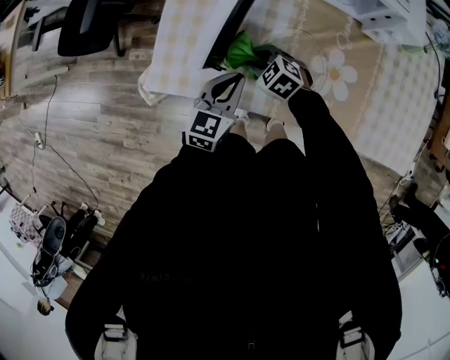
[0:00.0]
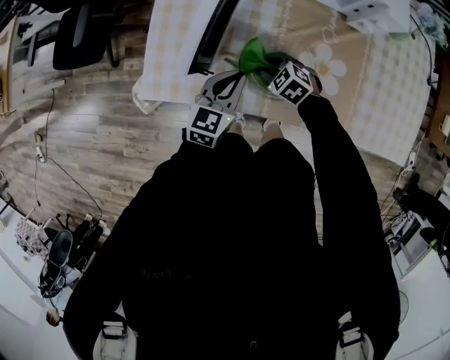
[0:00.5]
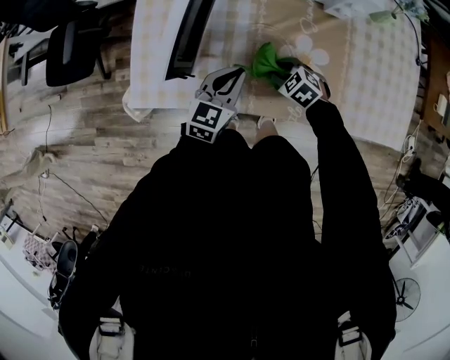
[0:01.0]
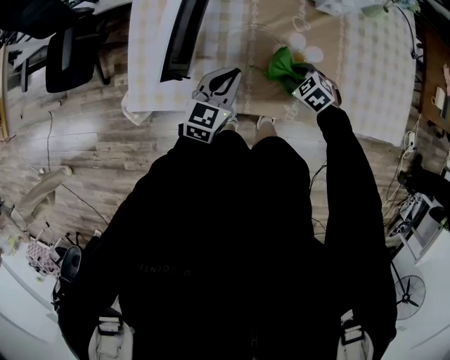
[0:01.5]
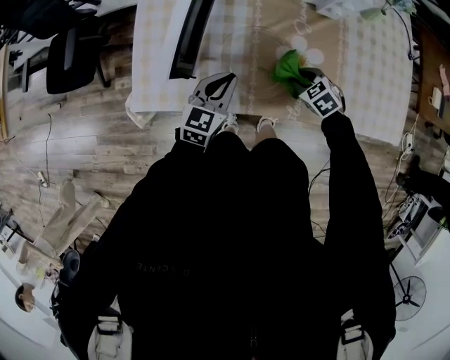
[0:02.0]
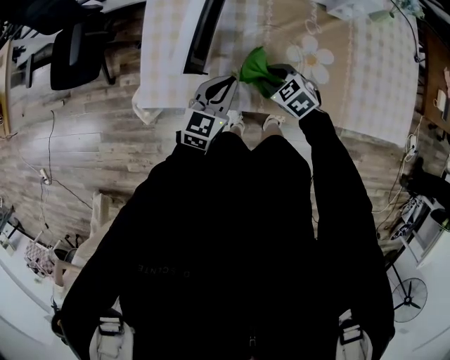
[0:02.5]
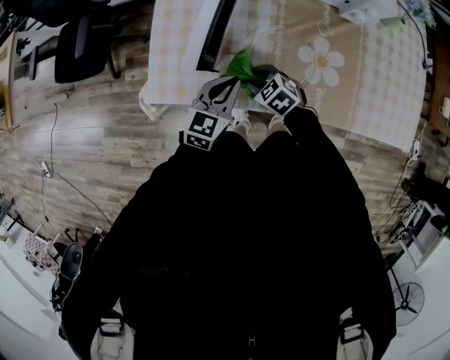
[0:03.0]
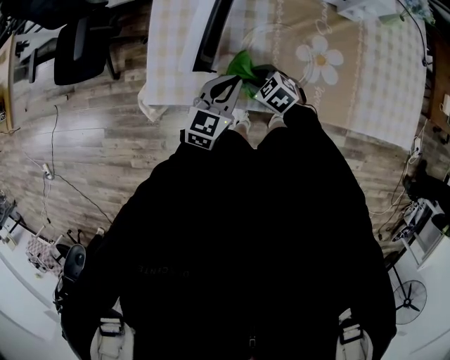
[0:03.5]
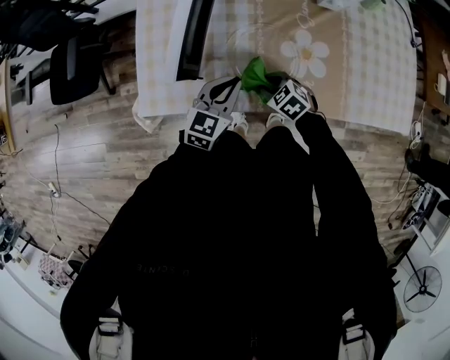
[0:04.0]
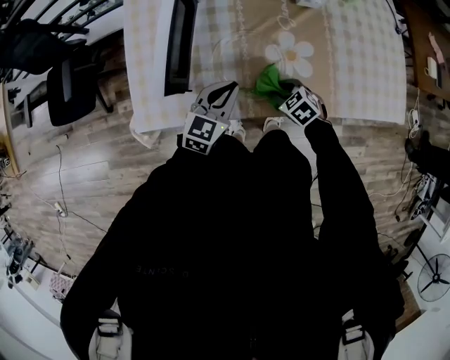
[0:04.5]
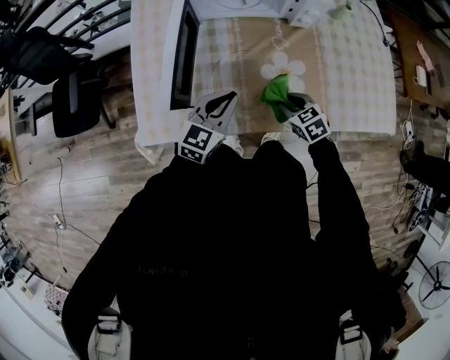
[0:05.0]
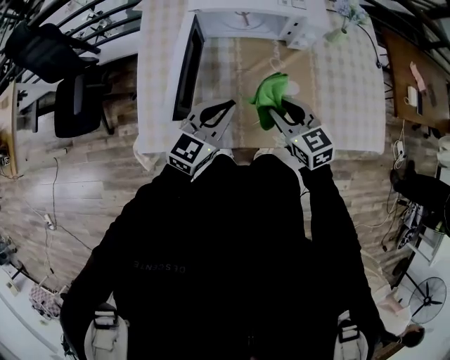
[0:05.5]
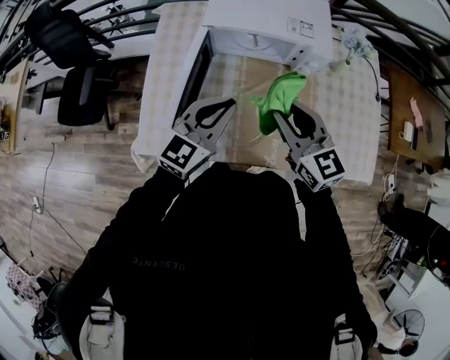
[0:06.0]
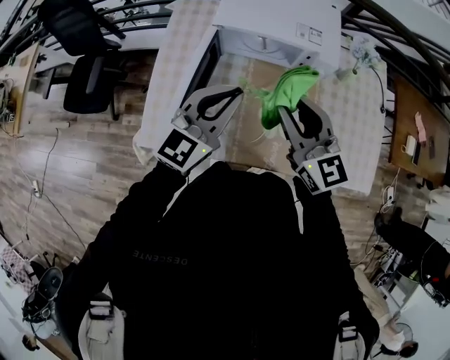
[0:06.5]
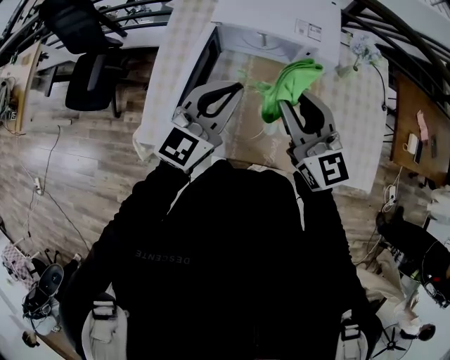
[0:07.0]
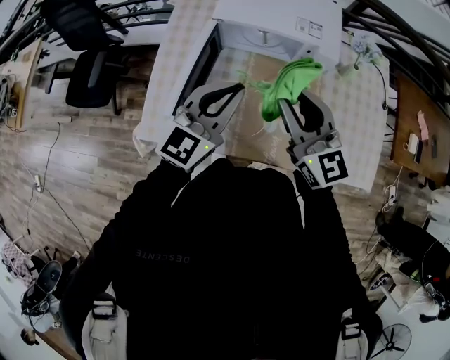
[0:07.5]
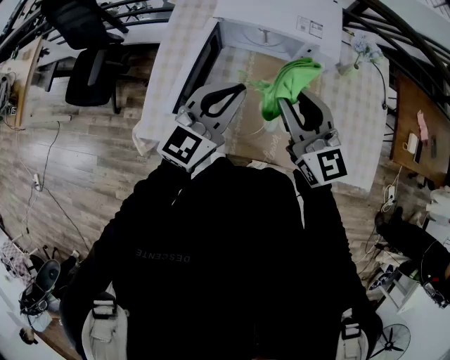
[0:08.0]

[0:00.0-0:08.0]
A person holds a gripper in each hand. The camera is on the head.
0:00.0 to 0:02.0: The left gripper is displaced to the right by roughly 5 cm; the right gripper heads to the right, covering about 25 cm, and changes its angle by some 20 degrees.
0:02.0 to 0:04.0: The right gripper goes some 15 cm to the left.
0:04.0 to 0:06.0: The left gripper shifts approximately 20 cm upward. The right gripper heads upward, covering some 35 cm, and angles its fingers upward, by roughly 50 degrees.
0:06.0 to 0:08.0: The two grippers go roughly 5 cm upward.

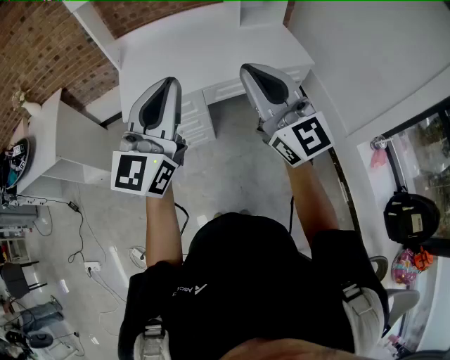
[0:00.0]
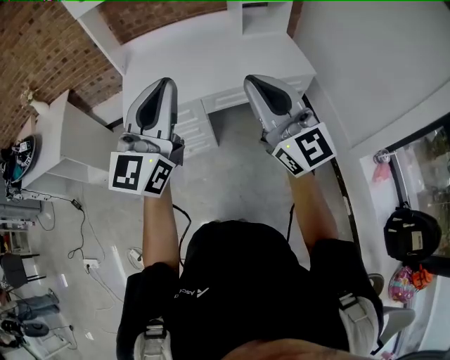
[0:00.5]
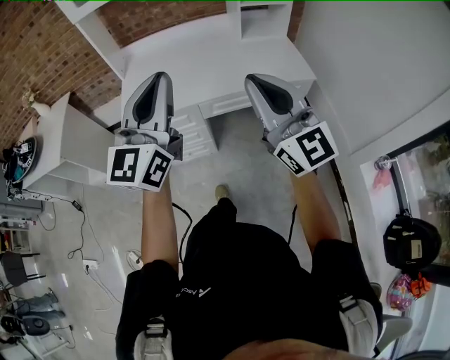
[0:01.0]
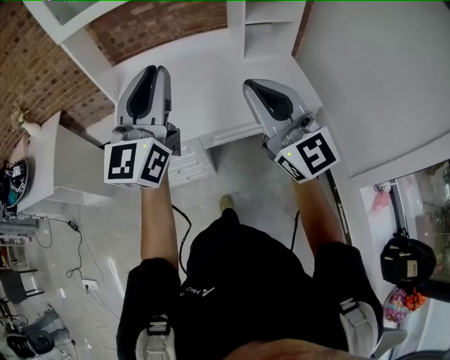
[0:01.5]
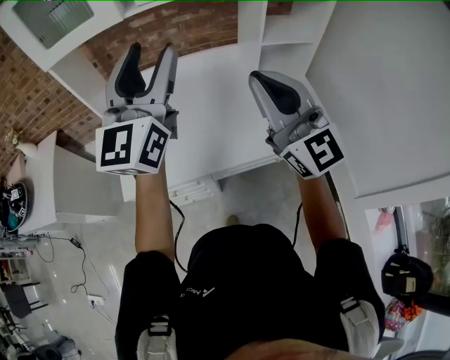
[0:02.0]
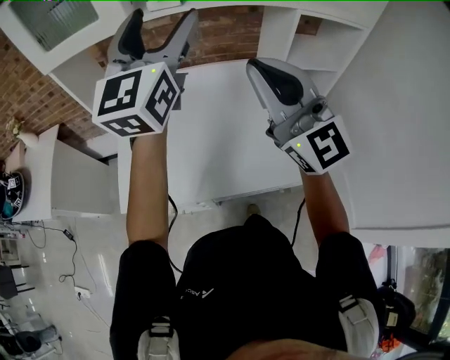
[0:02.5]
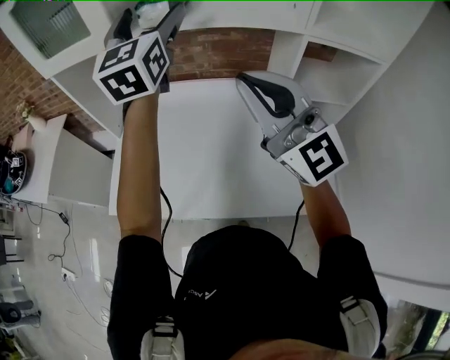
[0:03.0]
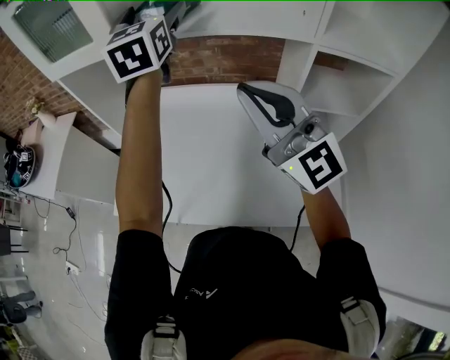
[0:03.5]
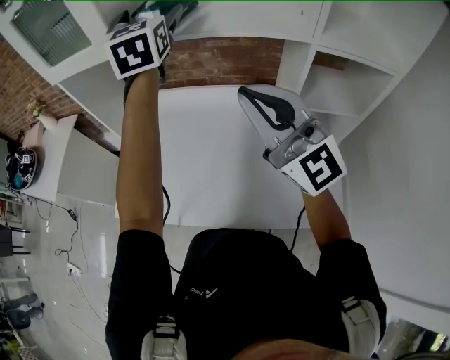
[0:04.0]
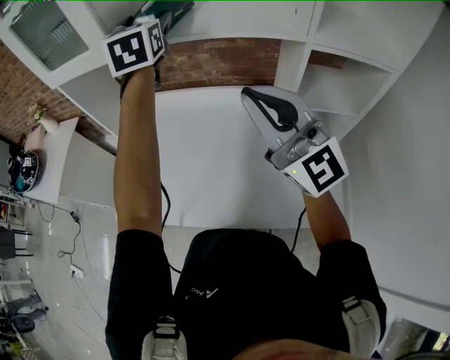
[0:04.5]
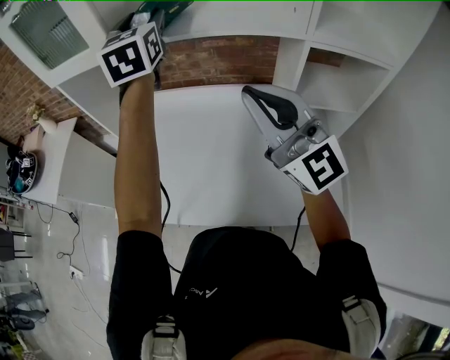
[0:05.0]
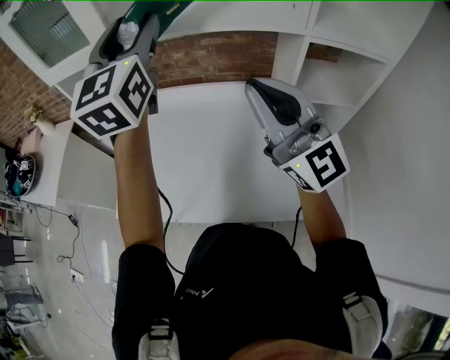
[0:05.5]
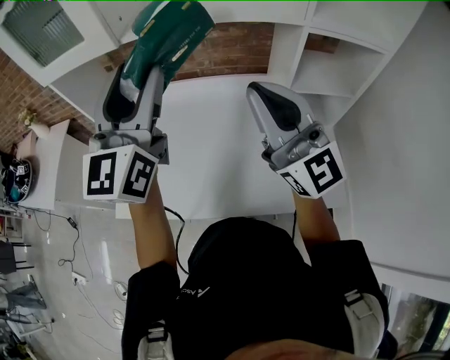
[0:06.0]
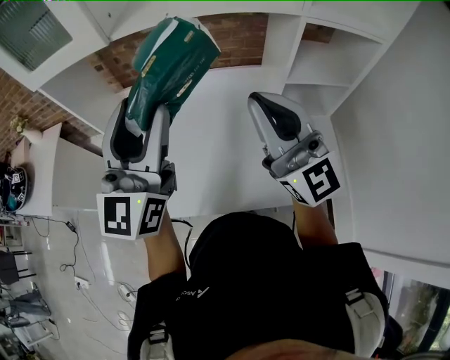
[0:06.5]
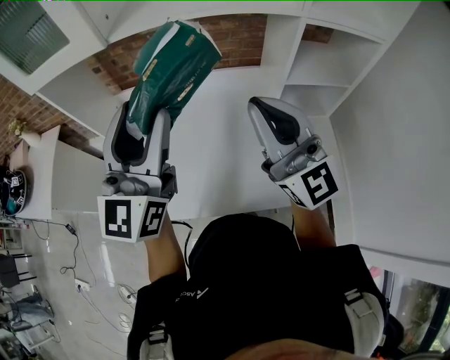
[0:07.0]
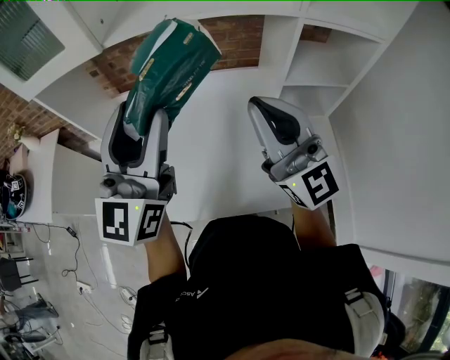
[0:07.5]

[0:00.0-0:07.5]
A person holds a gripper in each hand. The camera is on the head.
0:00.0 to 0:02.0: The two grippers go roughly 40 cm forward. The left gripper opens.
0:02.0 to 0:04.0: The right gripper ends up roughly 20 cm from where it was, and turns by some 20 degrees. The left gripper changes place by some 35 cm, changes its angle by approximately 40 degrees, and opens.
0:04.0 to 0:05.5: The left gripper moves backward, some 10 cm, and closes its fingers.
0:05.5 to 0:07.5: The right gripper is displaced downward by approximately 5 cm; the left gripper shifts some 15 cm backward and downward.

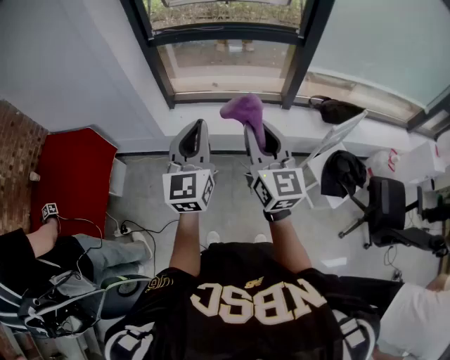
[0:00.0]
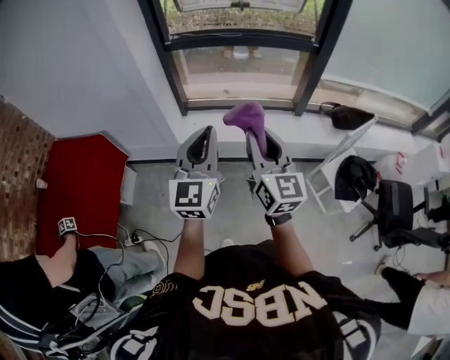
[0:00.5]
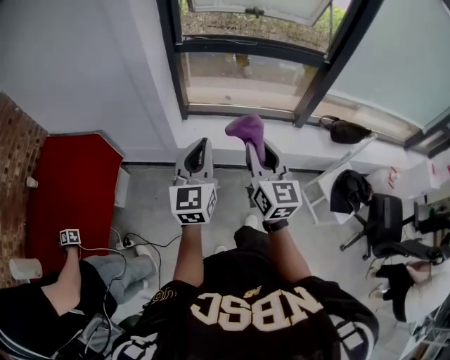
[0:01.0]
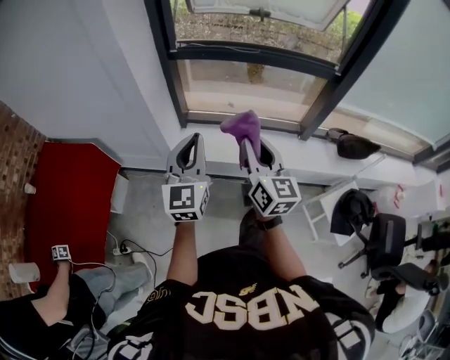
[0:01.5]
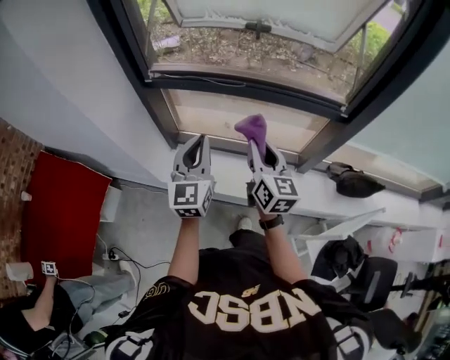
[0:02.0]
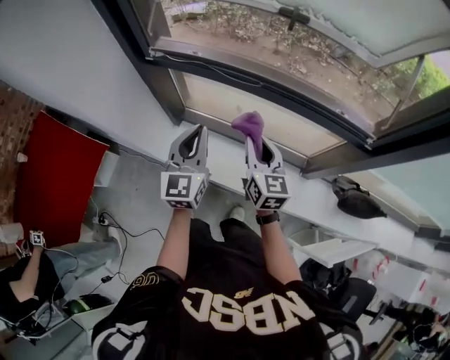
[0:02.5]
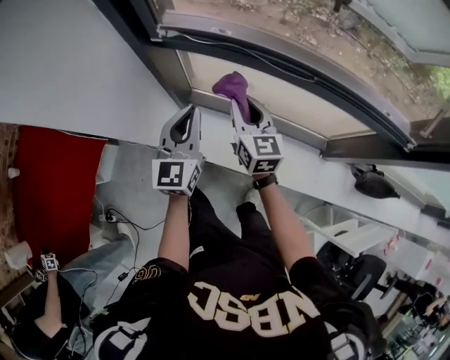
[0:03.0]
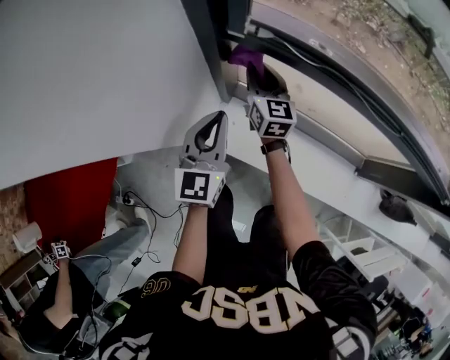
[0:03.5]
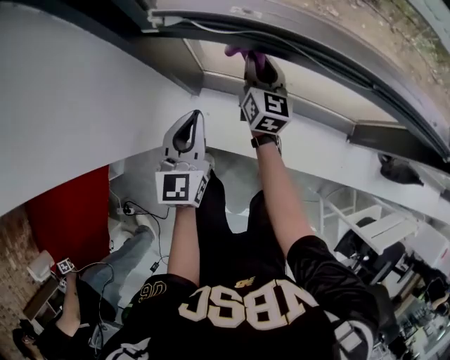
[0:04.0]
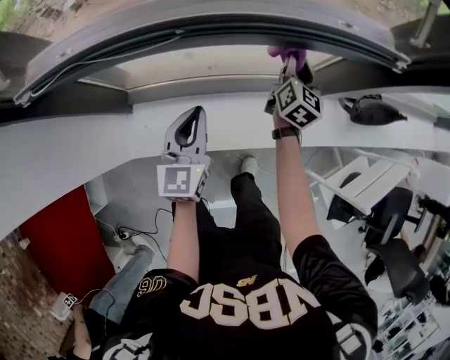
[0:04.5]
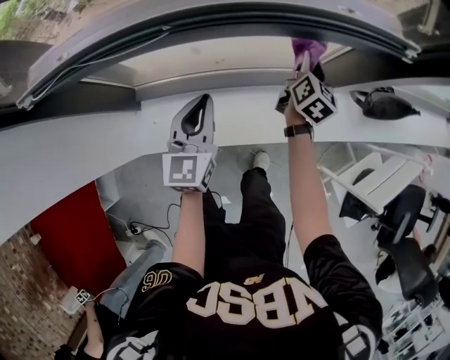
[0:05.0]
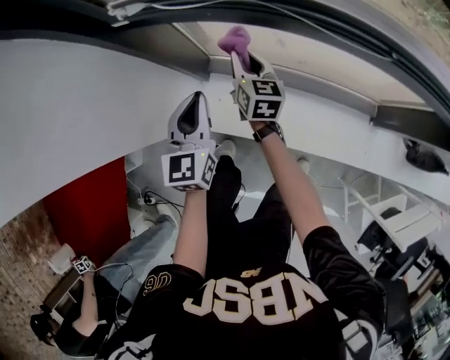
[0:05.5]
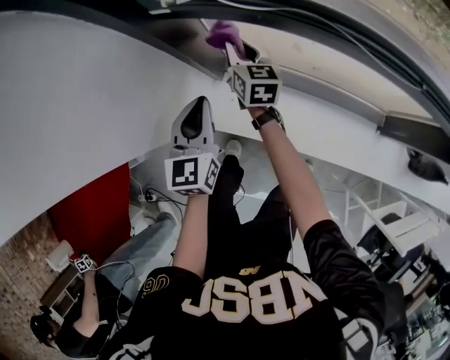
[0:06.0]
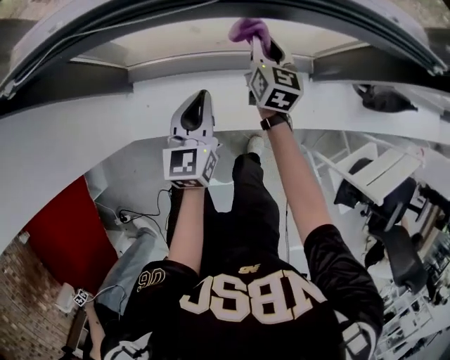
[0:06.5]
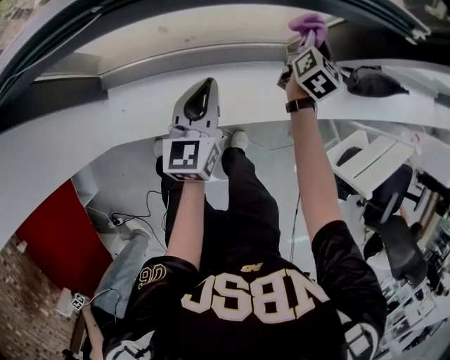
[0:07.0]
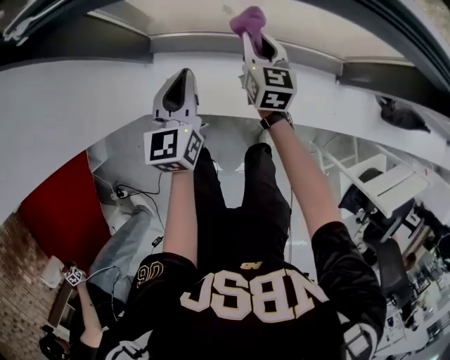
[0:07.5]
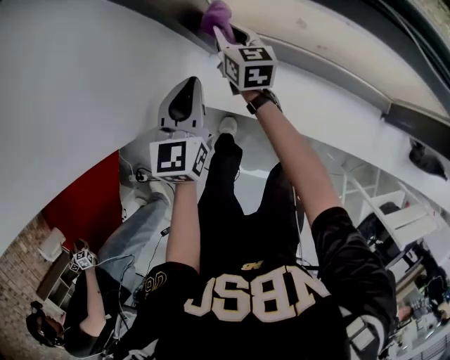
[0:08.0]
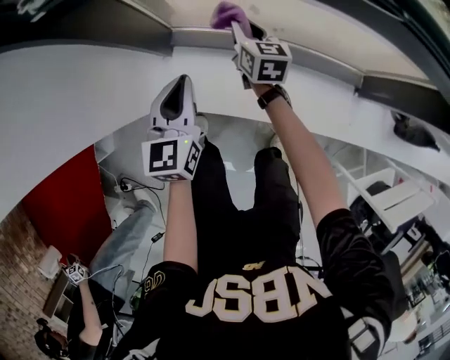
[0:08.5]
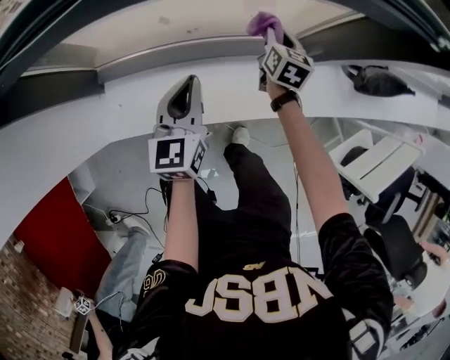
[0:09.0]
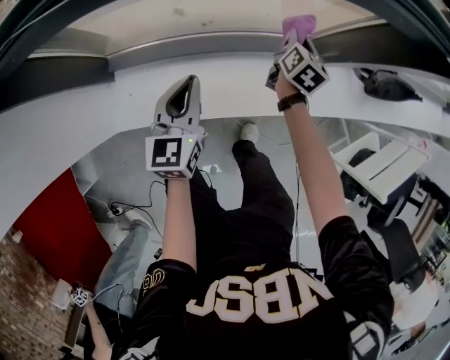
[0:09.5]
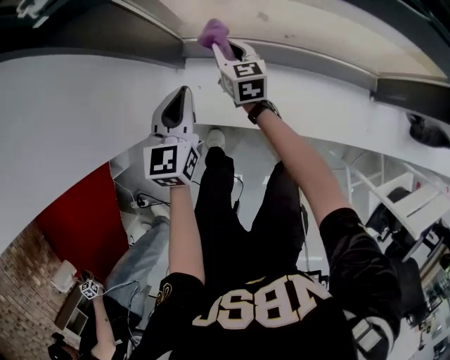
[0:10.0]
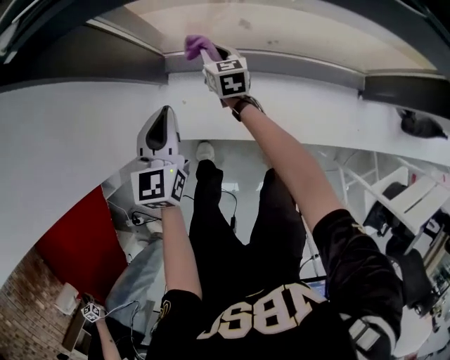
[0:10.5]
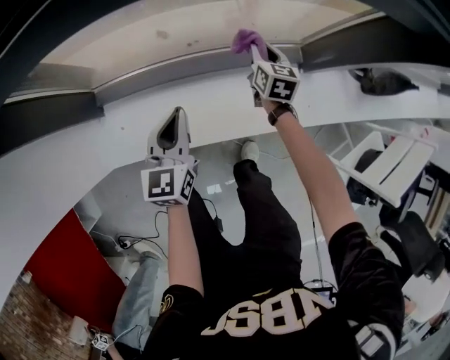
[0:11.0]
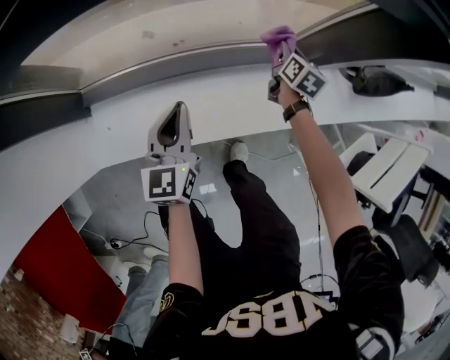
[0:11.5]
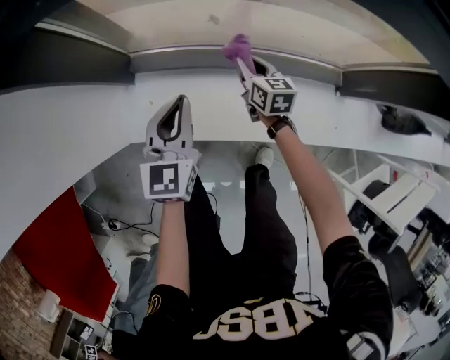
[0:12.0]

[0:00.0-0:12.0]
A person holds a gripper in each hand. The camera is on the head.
0:00.0 to 0:02.0: Both grippers move forward, about 40 cm.
0:02.0 to 0:04.0: The right gripper heads forward, downward and to the left, covering approximately 40 cm. The left gripper travels downward, forward and to the left by about 30 cm.
0:04.0 to 0:06.0: The left gripper travels downward by some 5 cm.
0:06.0 to 0:08.0: The right gripper shifts approximately 5 cm downward.
